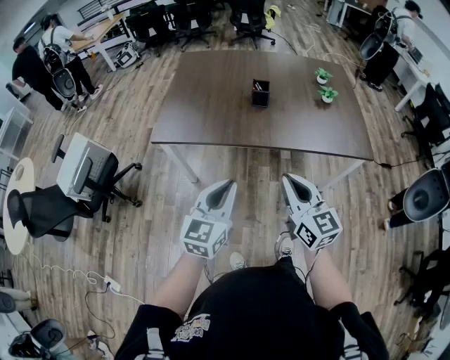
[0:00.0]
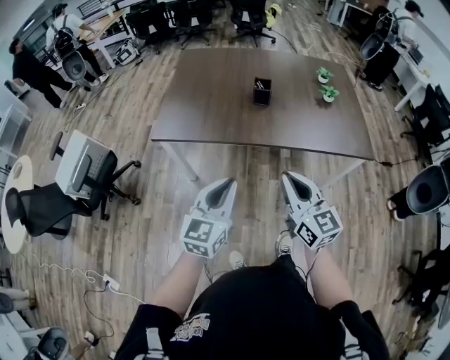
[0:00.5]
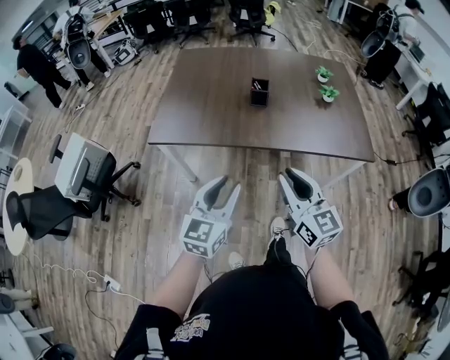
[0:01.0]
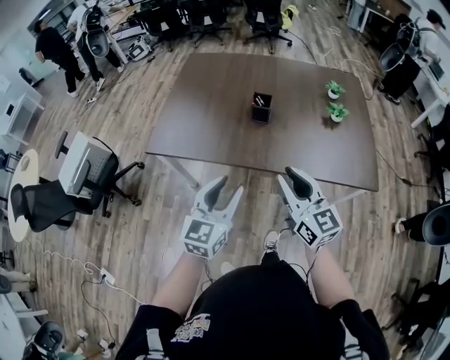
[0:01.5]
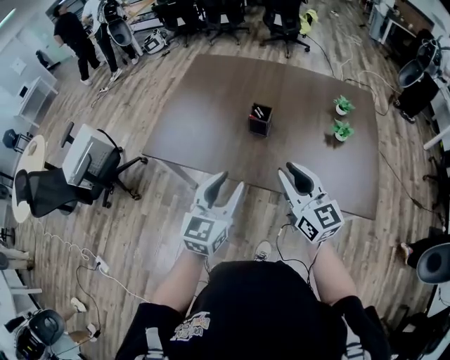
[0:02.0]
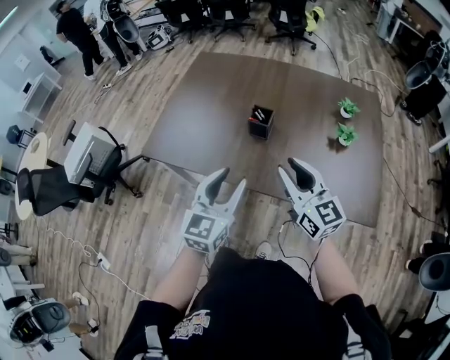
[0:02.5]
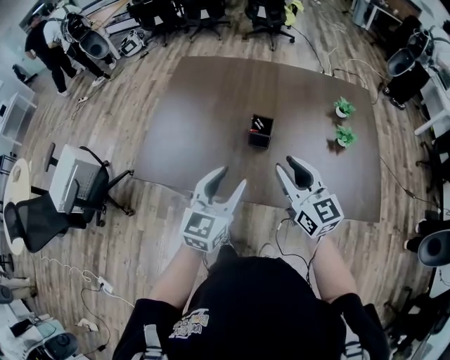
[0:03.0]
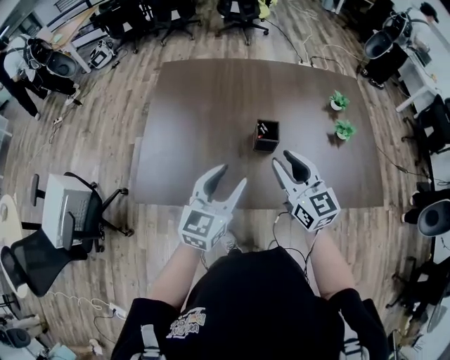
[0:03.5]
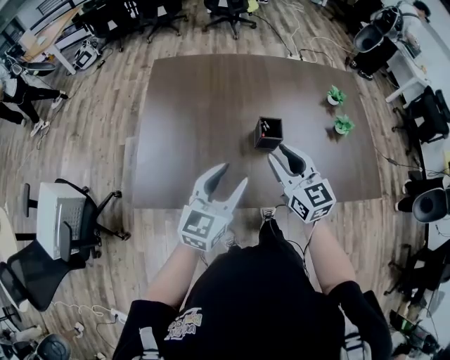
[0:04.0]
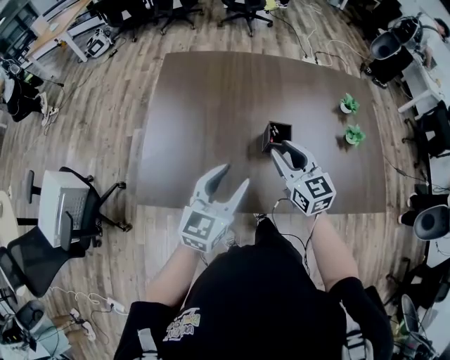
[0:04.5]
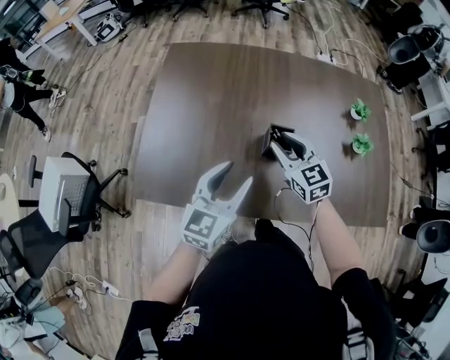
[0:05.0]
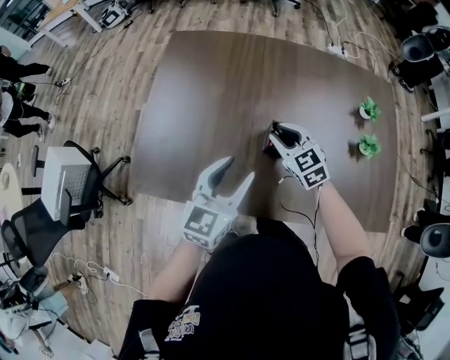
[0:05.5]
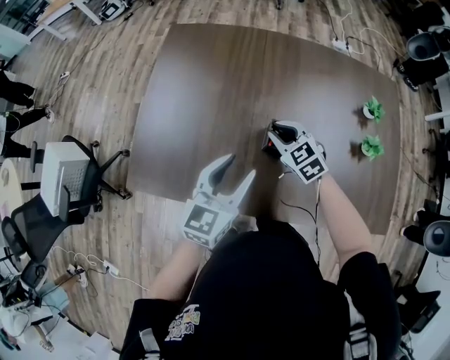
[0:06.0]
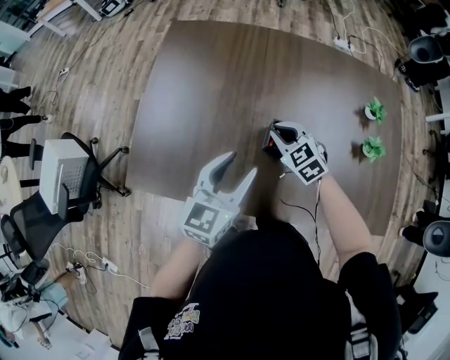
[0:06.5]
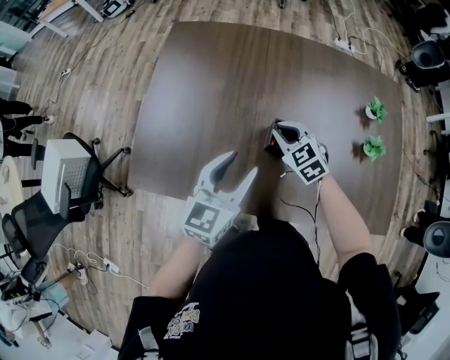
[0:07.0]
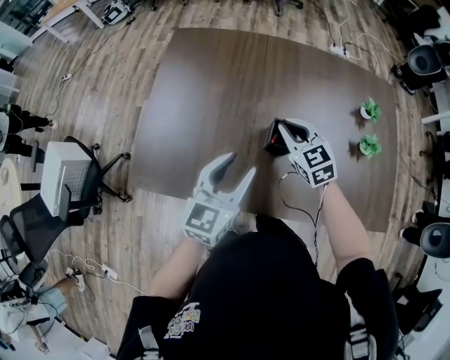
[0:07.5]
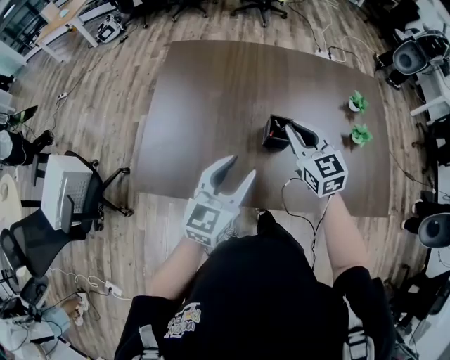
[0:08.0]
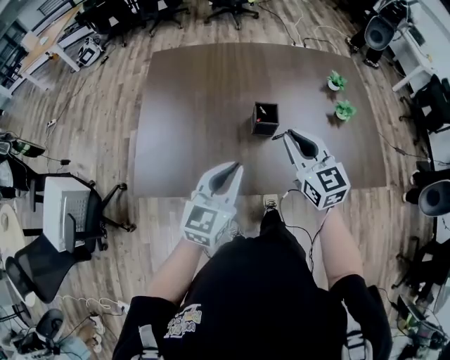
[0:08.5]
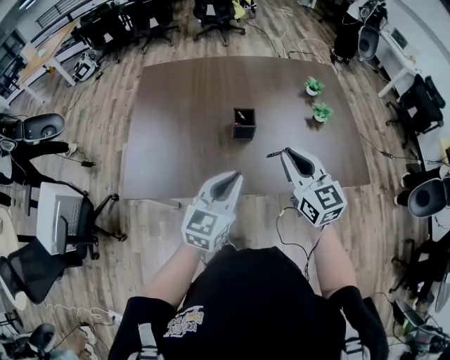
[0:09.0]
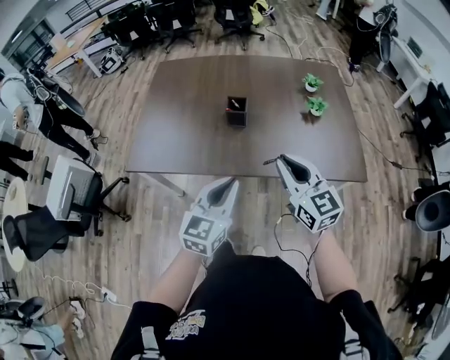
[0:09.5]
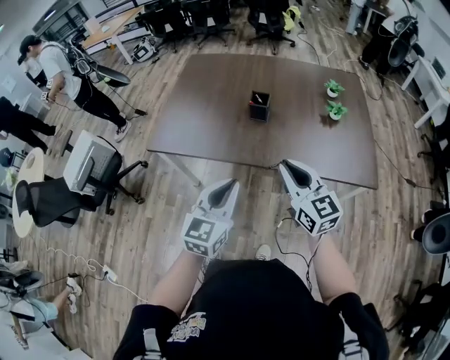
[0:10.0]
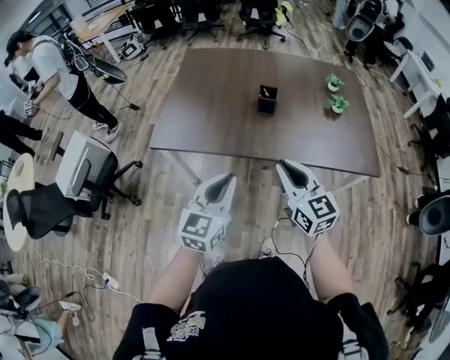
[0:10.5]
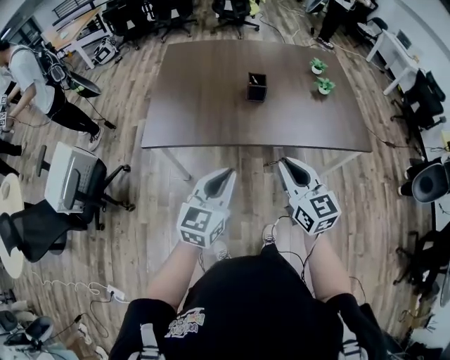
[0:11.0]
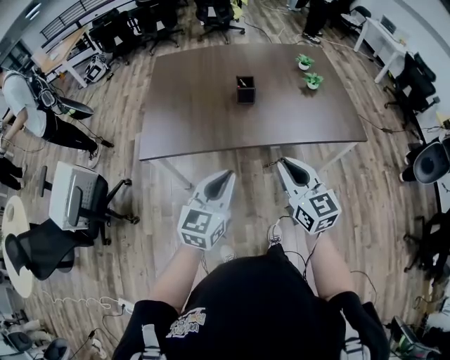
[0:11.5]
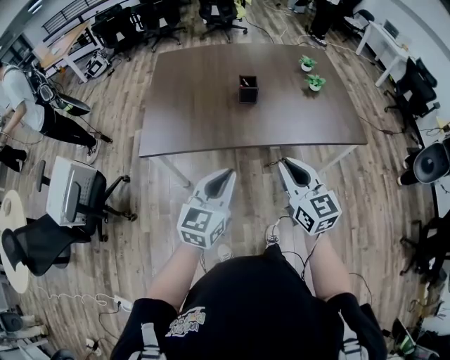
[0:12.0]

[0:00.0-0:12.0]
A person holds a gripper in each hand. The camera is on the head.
0:00.0 to 0:02.0: Both grippers move forward and to the right, approximately 25 cm. The left gripper opens its fingers. The right gripper opens up.
0:02.0 to 0:04.0: Both grippers move forward and to the left, about 25 cm. The left gripper changes its angle by approximately 20 degrees, while the right gripper rotates some 20 degrees.
0:04.0 to 0:06.0: The left gripper heads forward, downward and to the right, covering roughly 10 cm, while the right gripper shifts some 25 cm downward and forward, and changes its angle by approximately 40 degrees.
0:06.0 to 0:08.0: The right gripper travels upward and backward by approximately 15 cm, and rotates about 30 degrees. The left gripper goes approximately 5 cm backward.
0:08.0 to 0:10.0: The grippers both shift backward by some 35 cm. The left gripper closes.
0:10.0 to 0:12.0: The left gripper goes about 10 cm to the left, while the right gripper is displaced to the left and backward by some 15 cm.

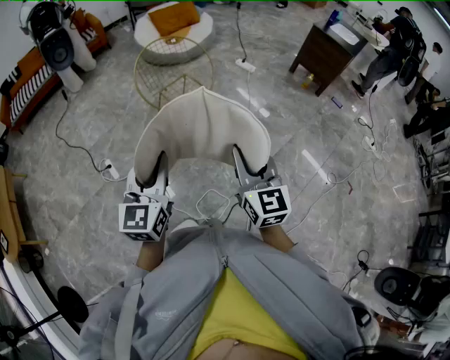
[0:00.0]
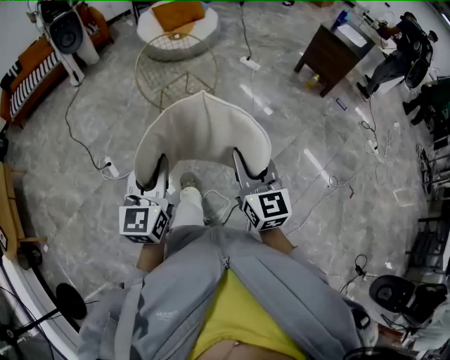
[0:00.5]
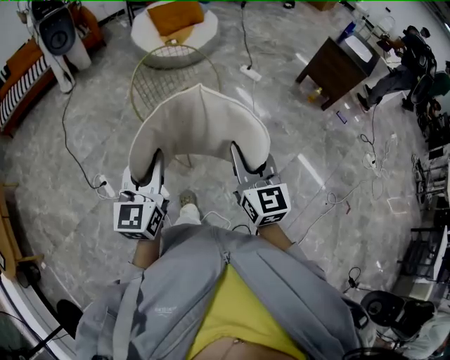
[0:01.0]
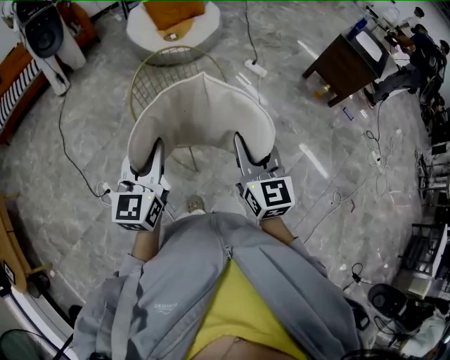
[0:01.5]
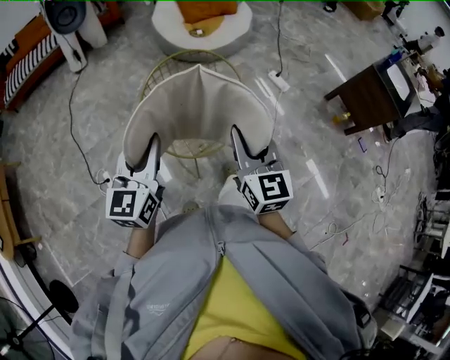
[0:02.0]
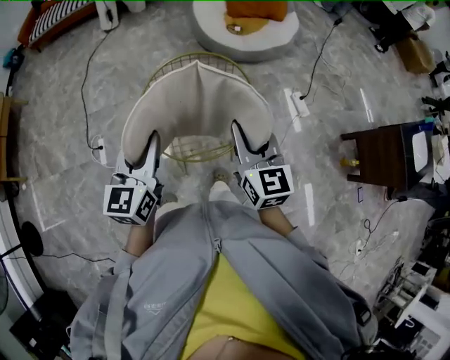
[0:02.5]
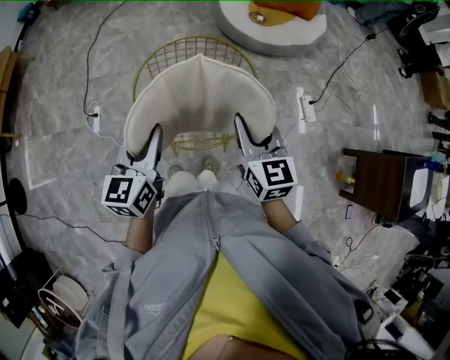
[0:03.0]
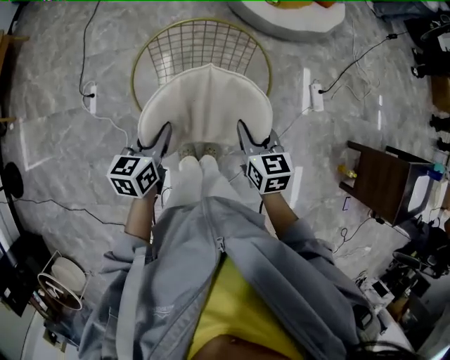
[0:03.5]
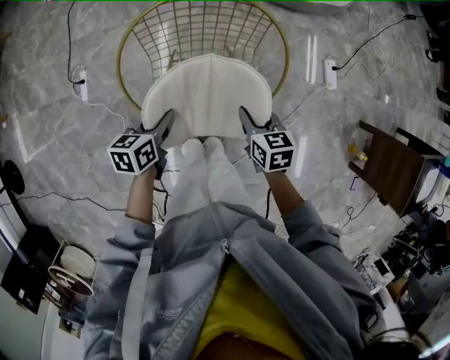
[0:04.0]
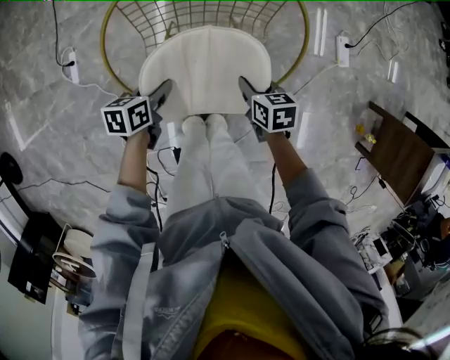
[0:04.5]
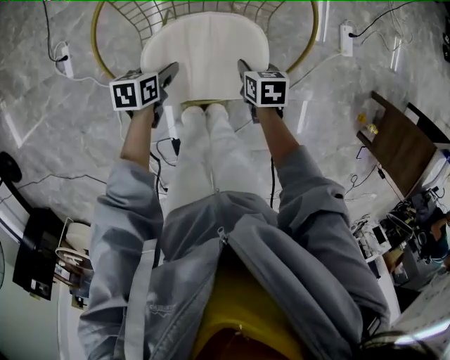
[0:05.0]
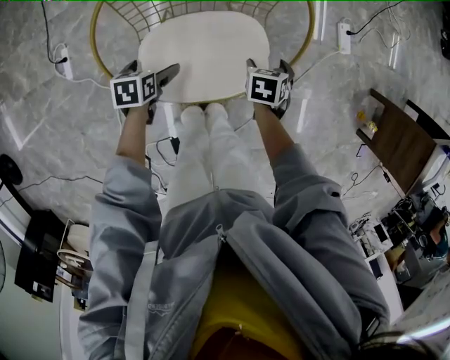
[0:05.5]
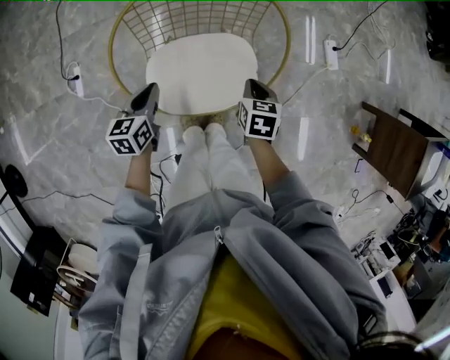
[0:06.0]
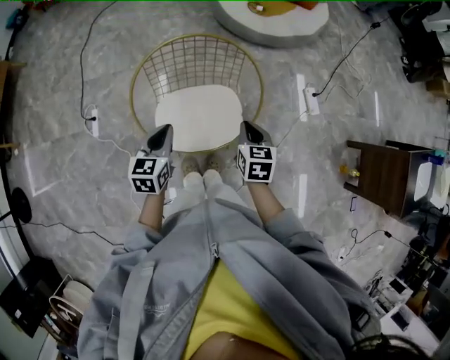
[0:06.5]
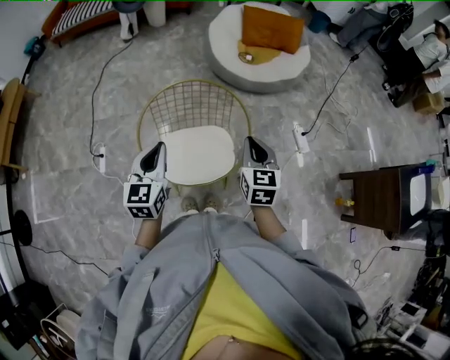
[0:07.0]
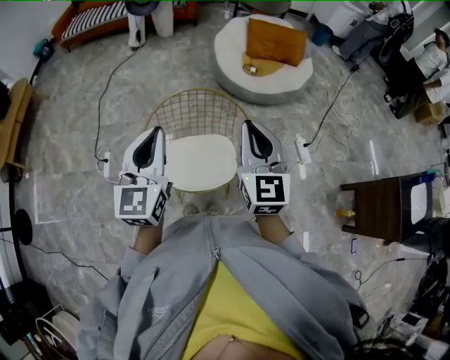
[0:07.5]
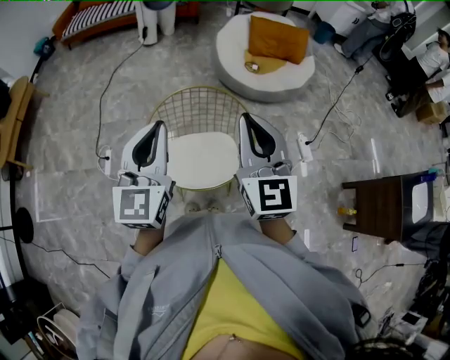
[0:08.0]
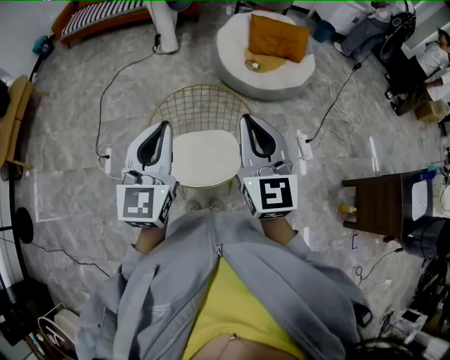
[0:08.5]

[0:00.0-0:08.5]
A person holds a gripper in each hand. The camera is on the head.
0:00.0 to 0:02.0: The pair of grippers is taken forward, approximately 50 cm.
0:02.0 to 0:04.0: The two grippers go approximately 35 cm downward. The right gripper tips its fingers downward by roughly 40 degrees. Meanwhile the left gripper tips its fingers downward by roughly 40 degrees.
0:04.0 to 0:06.5: Both grippers travel together upward, some 10 cm. The right gripper opens, then closes once more. The left gripper turns by some 30 degrees, and opens and closes again.
0:06.5 to 0:08.5: Both grippers travel together upward, about 35 cm. The left gripper changes its angle by some 30 degrees. The right gripper tips its fingers upward by some 40 degrees.

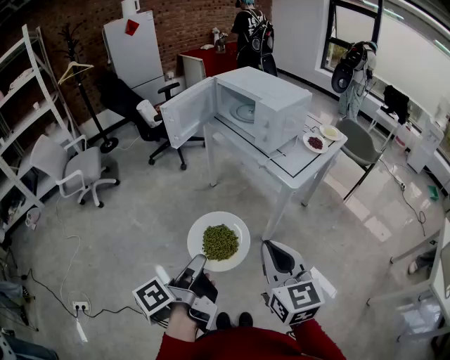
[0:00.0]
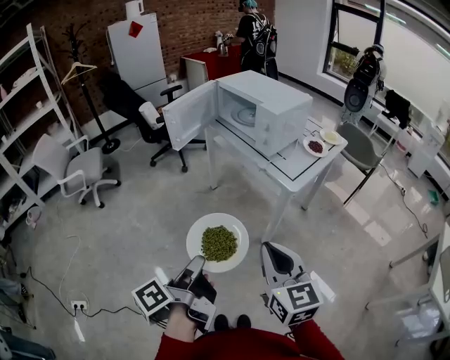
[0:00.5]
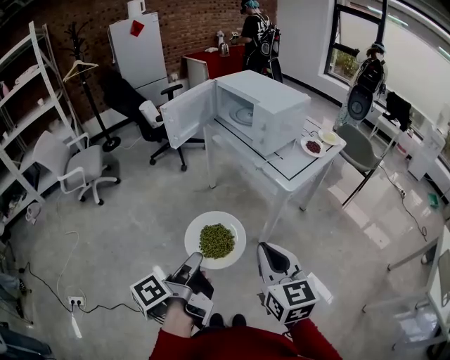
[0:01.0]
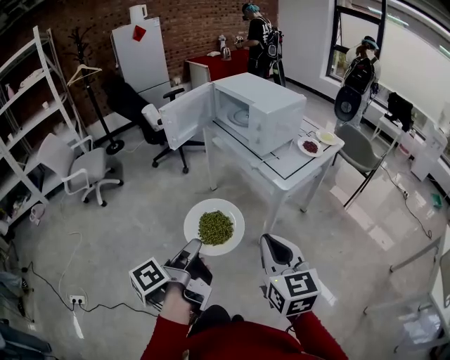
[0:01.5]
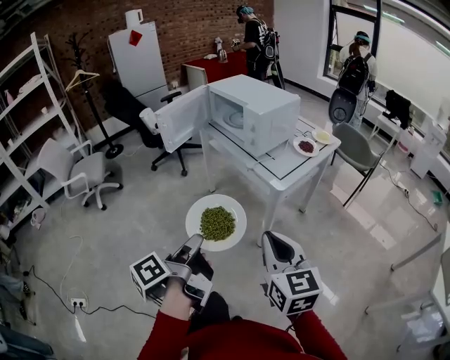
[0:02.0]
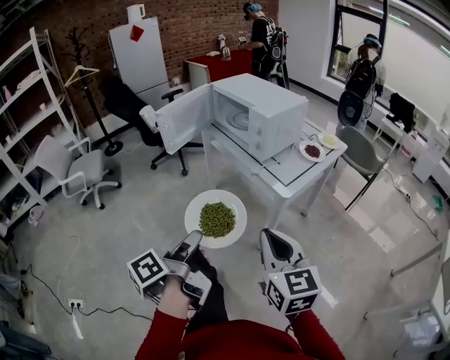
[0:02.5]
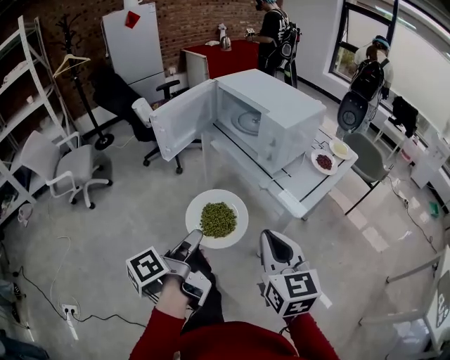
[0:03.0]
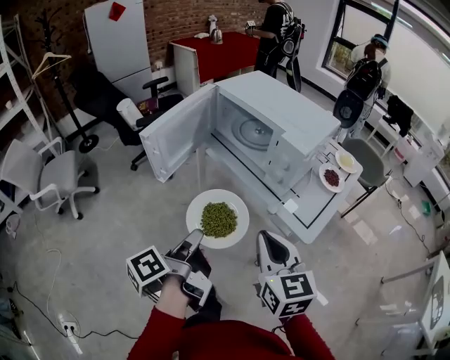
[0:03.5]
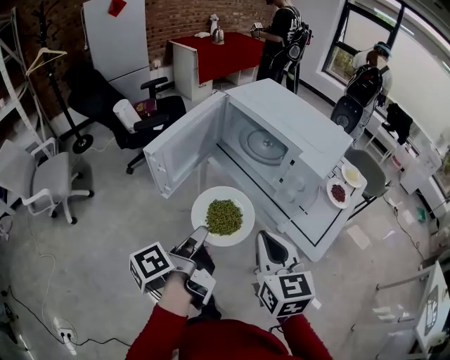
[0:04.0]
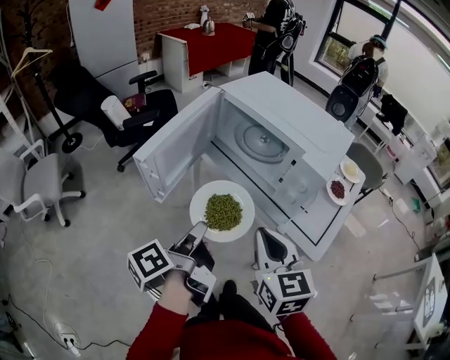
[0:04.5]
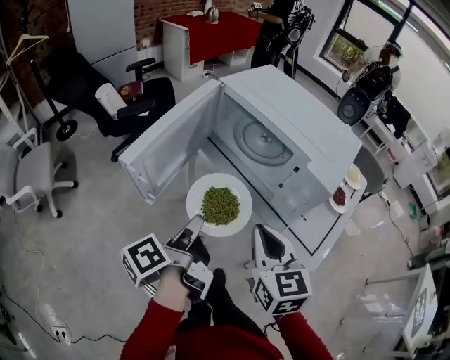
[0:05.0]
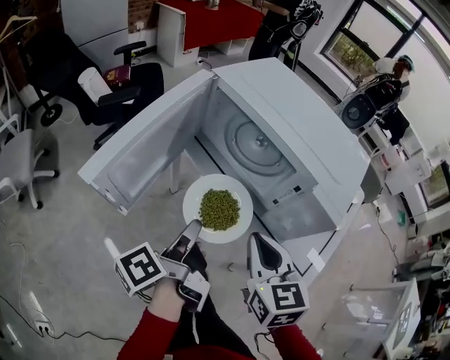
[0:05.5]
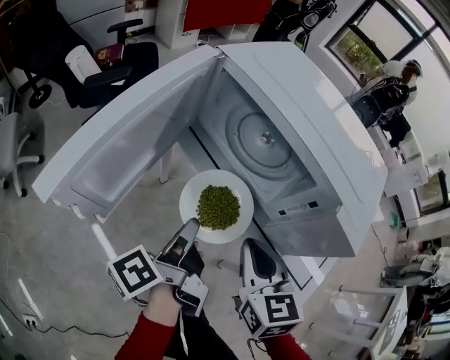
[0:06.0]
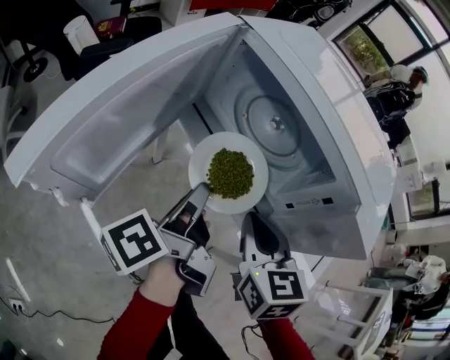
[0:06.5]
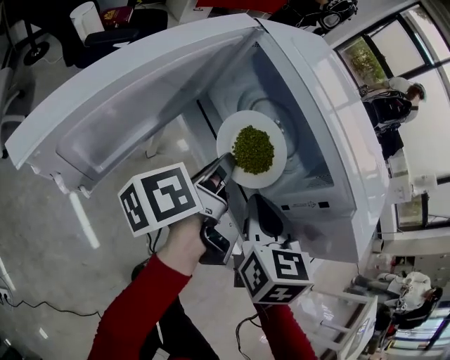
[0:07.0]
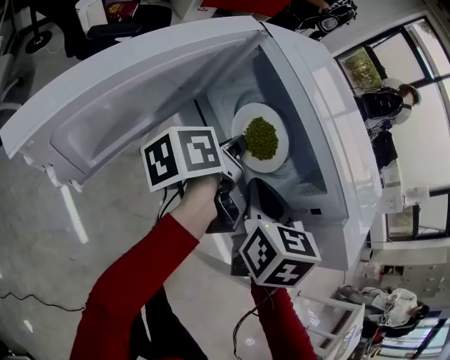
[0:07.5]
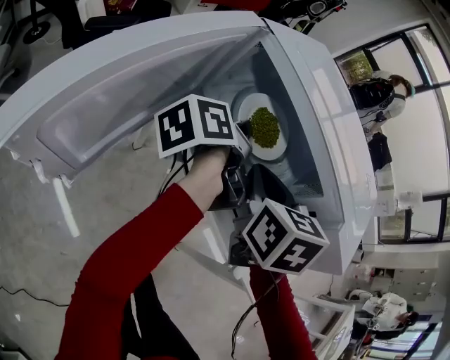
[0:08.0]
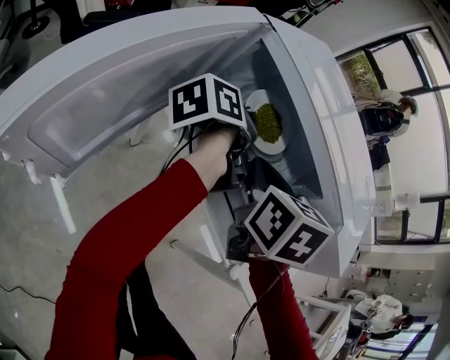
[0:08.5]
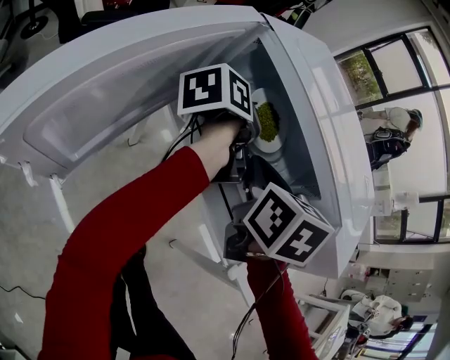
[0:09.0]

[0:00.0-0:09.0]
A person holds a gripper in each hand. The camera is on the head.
0:00.0 to 0:02.0: The grippers both shift to the right by approximately 5 cm.
0:02.0 to 0:04.5: The right gripper is displaced forward and to the left by roughly 35 cm; the left gripper travels forward by roughly 35 cm.
0:04.5 to 0:07.0: The right gripper is displaced forward and downward by some 20 cm, while the left gripper heads forward, covering approximately 25 cm.
0:07.0 to 0:09.0: The left gripper moves forward, about 15 cm, and turns by some 20 degrees, while the right gripper moves forward, approximately 10 cm.
